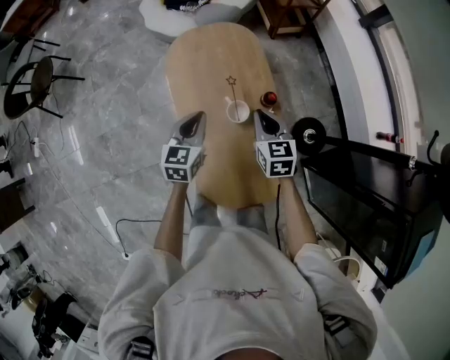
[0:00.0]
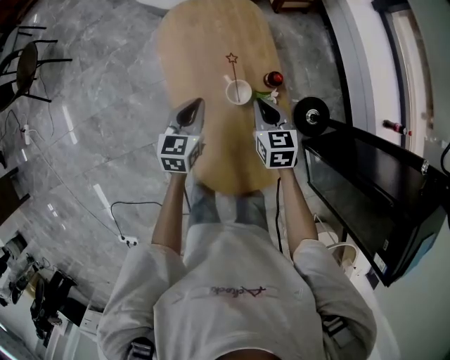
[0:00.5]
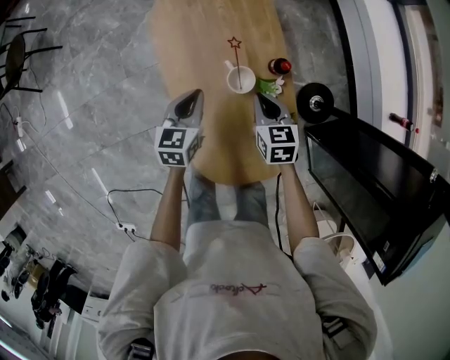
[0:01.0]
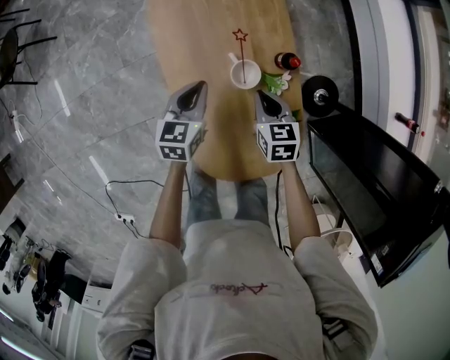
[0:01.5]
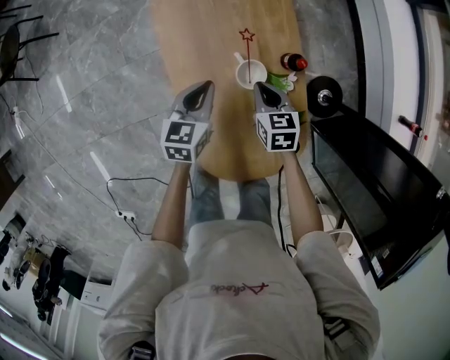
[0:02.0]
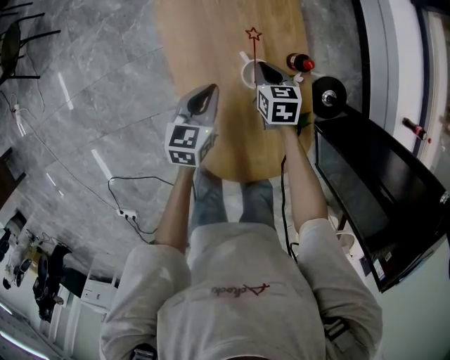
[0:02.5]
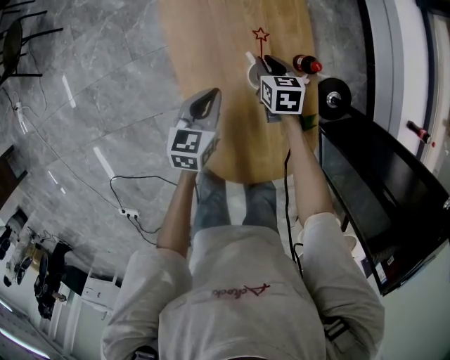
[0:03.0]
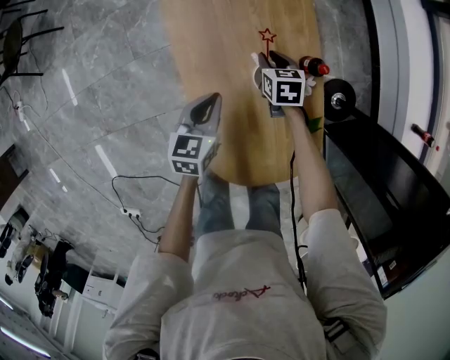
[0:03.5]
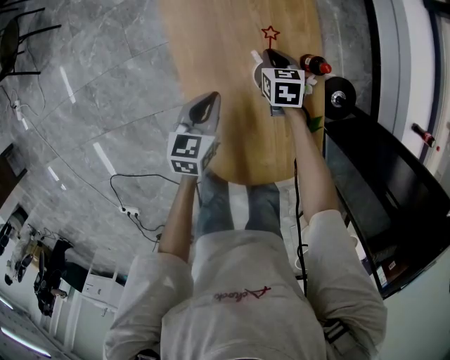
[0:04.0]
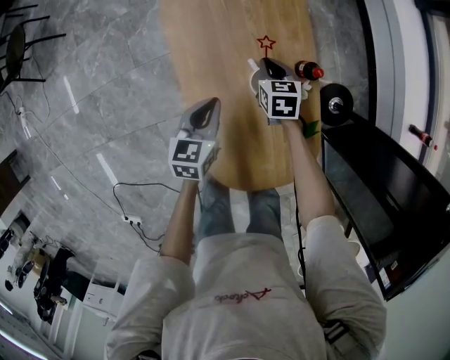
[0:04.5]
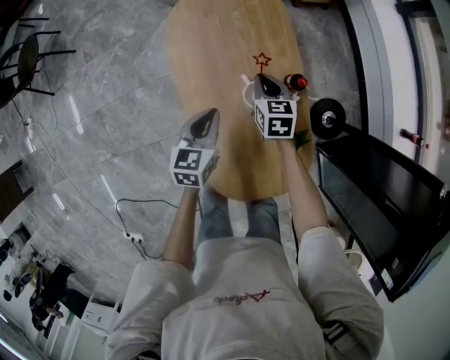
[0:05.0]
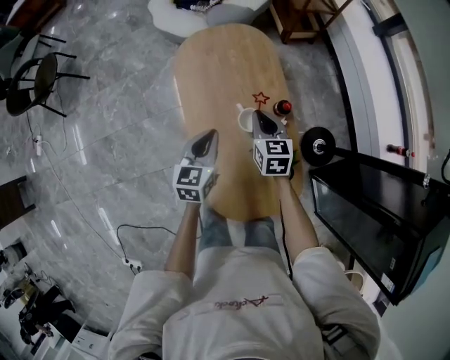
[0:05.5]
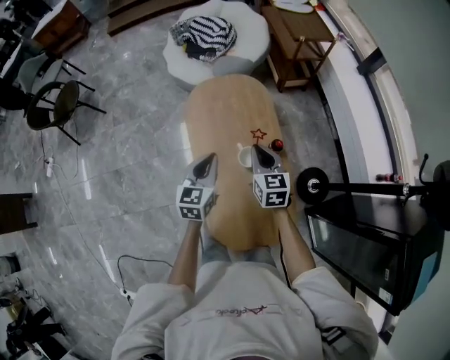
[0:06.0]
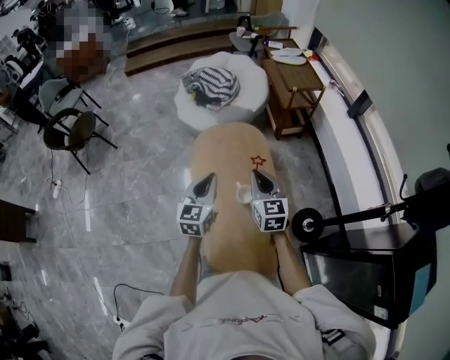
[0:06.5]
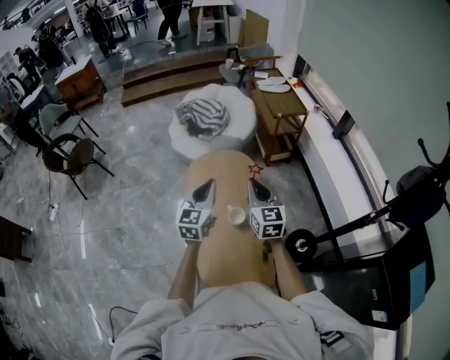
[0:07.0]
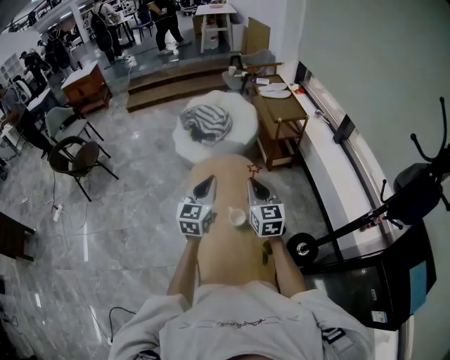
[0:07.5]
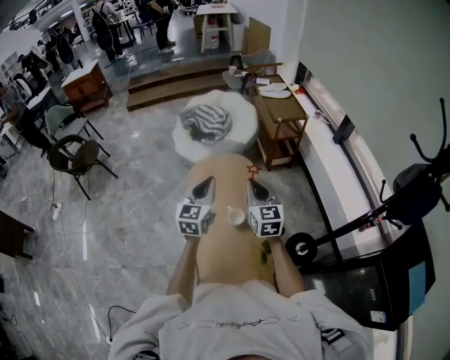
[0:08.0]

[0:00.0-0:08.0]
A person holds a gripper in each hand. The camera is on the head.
0:00.0 to 0:02.0: The grippers both shift downward by about 20 cm.
0:02.0 to 0:04.0: The left gripper ends up about 5 cm from where it was. The right gripper travels downward and forward by about 15 cm, and opens and closes again.
0:04.0 to 0:06.0: The grippers both shift upward by about 35 cm. The right gripper changes its angle by approximately 30 degrees. Meanwhile the left gripper rotates about 20 degrees.
0:06.0 to 0:08.0: Both grippers move upward, approximately 20 cm.

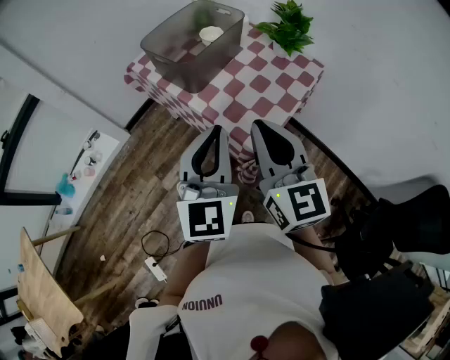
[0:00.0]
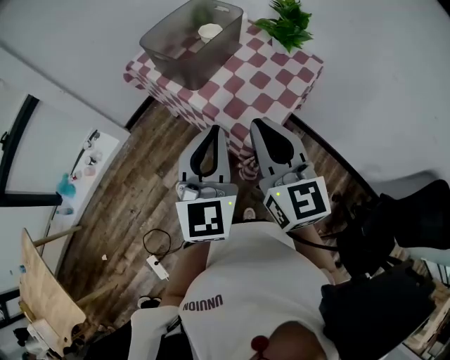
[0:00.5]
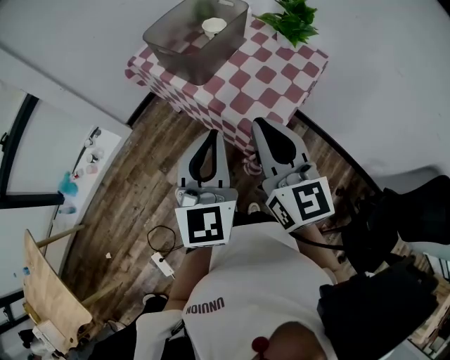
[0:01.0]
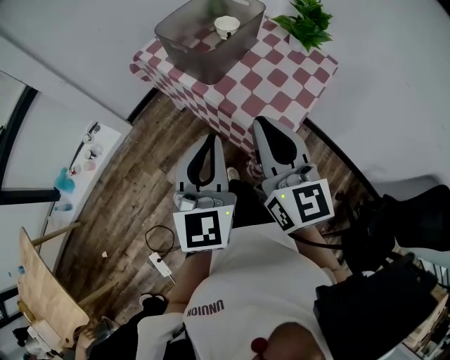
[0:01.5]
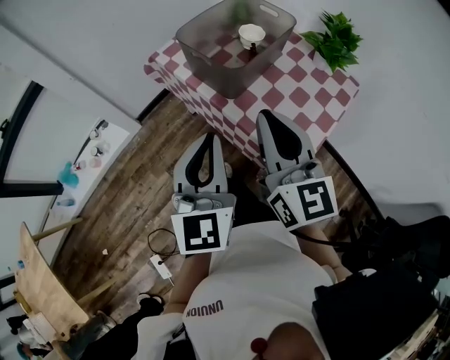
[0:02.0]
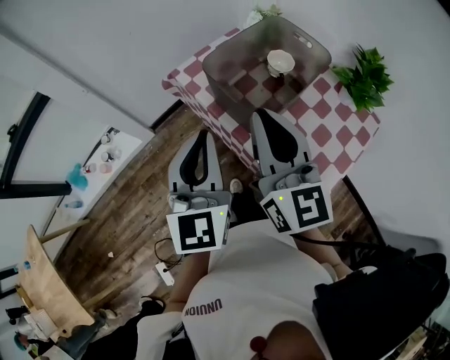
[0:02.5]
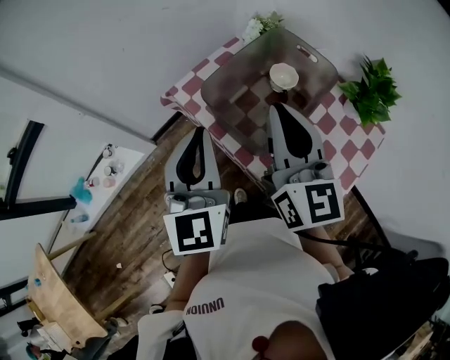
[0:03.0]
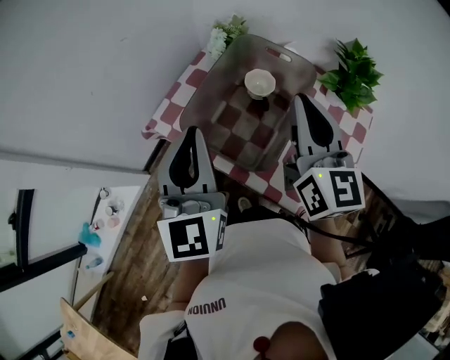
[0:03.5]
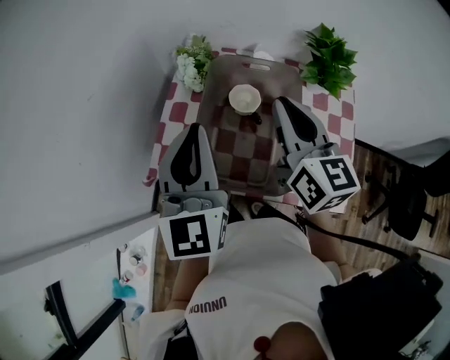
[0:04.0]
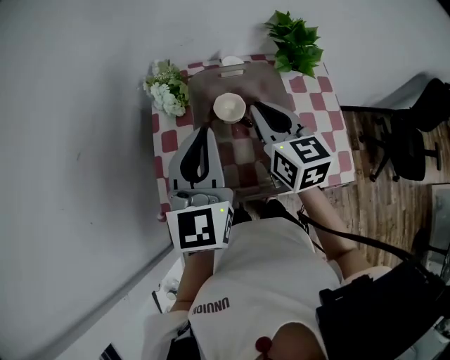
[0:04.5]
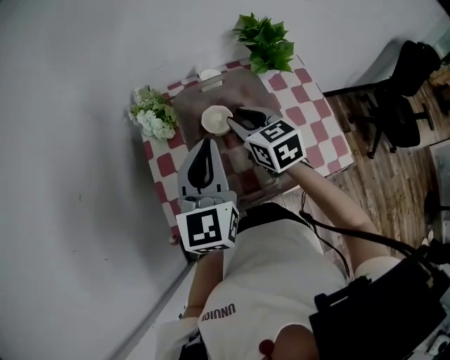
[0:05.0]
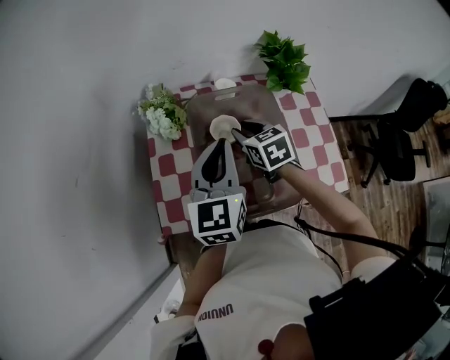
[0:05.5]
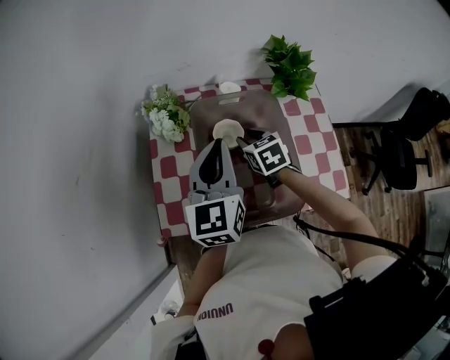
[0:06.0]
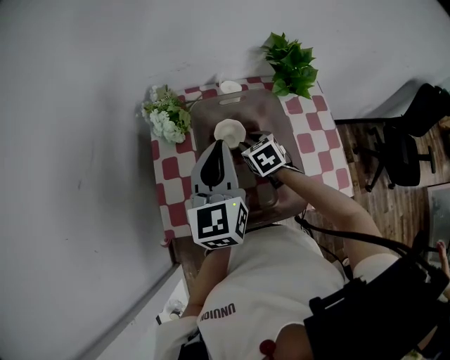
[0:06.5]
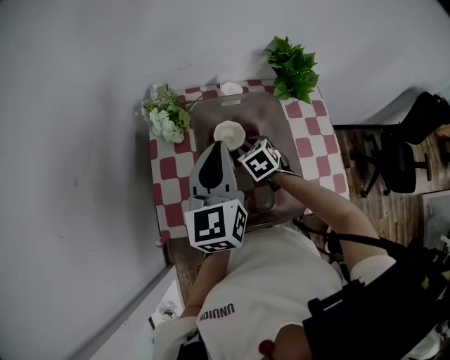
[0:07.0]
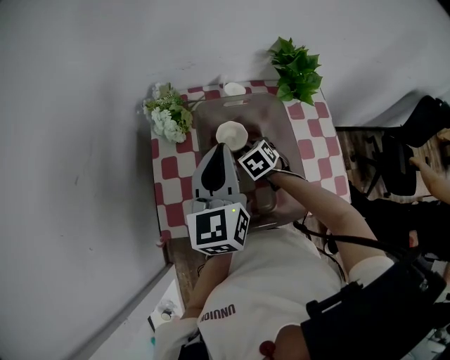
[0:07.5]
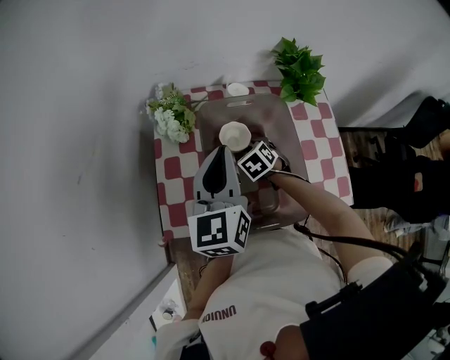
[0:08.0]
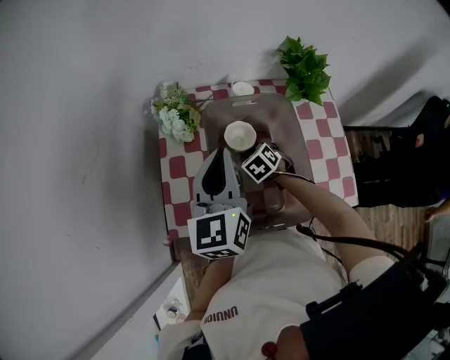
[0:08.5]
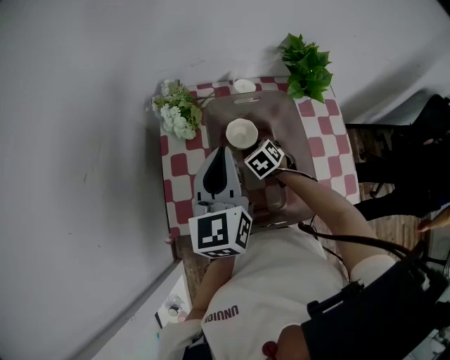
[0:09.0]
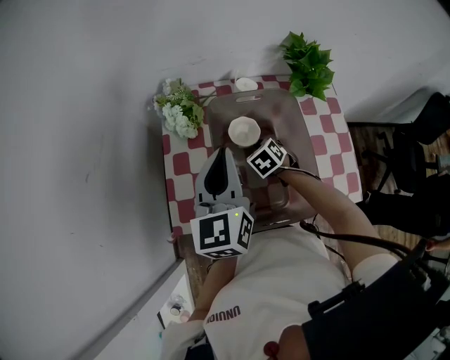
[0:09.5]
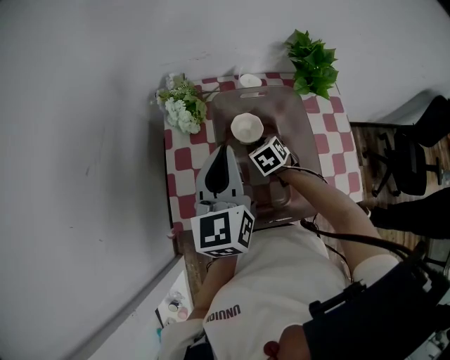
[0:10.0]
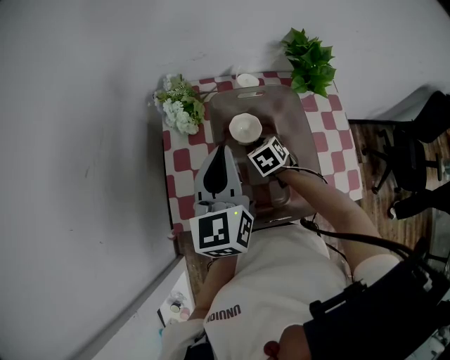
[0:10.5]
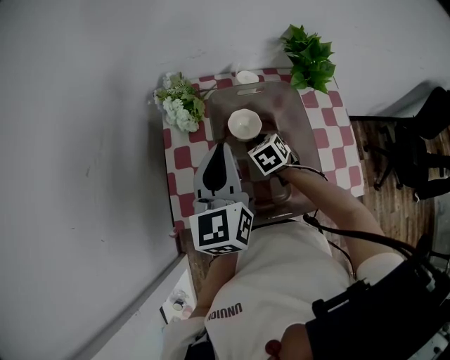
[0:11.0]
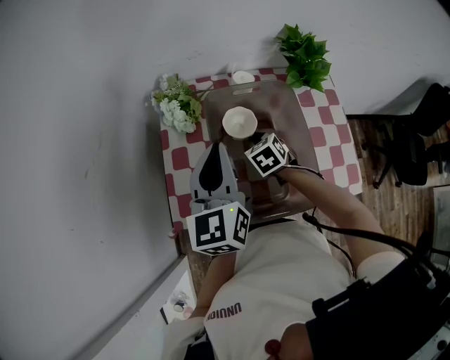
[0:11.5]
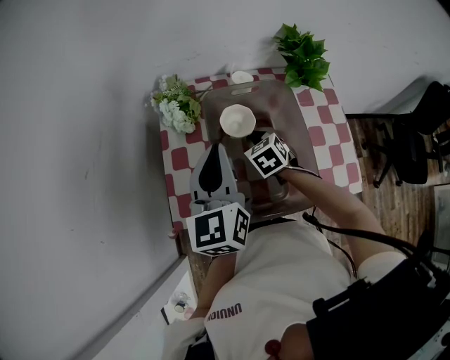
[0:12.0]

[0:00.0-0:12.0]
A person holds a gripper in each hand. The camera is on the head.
0:00.0 to 0:02.0: The right gripper is displaced forward and to the left by roughly 15 cm, while the left gripper shifts some 15 cm to the left and forward.
0:02.0 to 0:04.0: The right gripper shifts by roughly 35 cm, and swivels roughly 40 degrees. The left gripper changes place by some 40 cm, and turns by approximately 30 degrees.
0:04.0 to 0:06.0: The left gripper goes roughly 10 cm forward and downward, and swivels about 30 degrees; the right gripper is displaced downward and forward by about 25 cm, angles its fingers downward, by about 40 degrees, and opens up.
0:06.0 to 0:08.0: The right gripper heads downward, covering approximately 10 cm, and rotates about 20 degrees.
0:08.0 to 0:10.0: The grippers stay close to where they were, moving slightly.
0:10.0 to 0:12.0: The right gripper is displaced upward by approximately 5 cm.

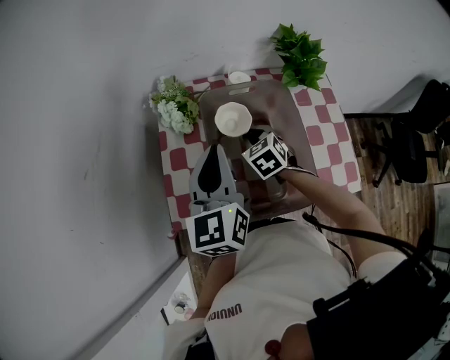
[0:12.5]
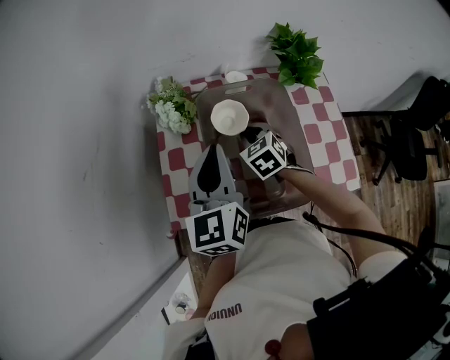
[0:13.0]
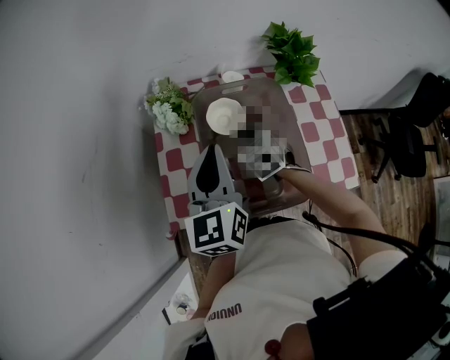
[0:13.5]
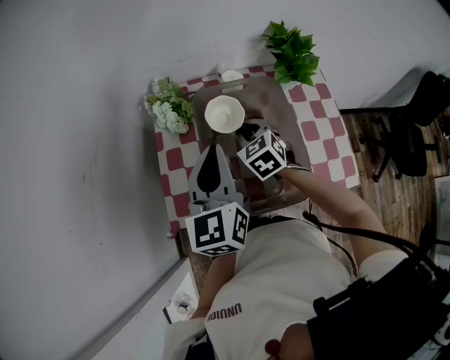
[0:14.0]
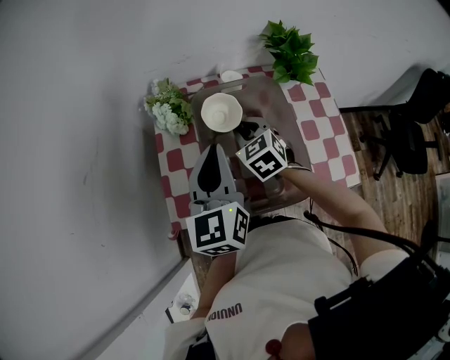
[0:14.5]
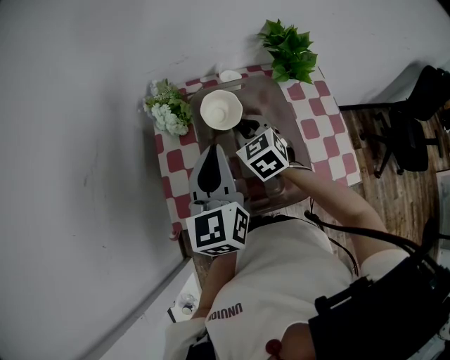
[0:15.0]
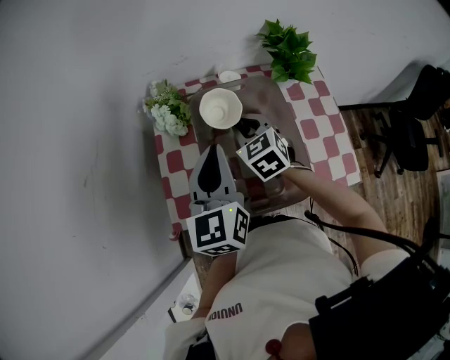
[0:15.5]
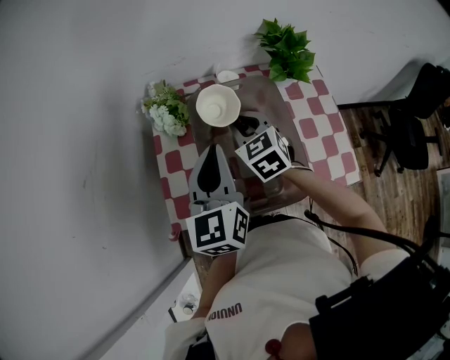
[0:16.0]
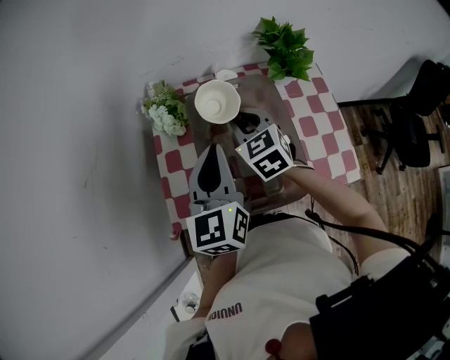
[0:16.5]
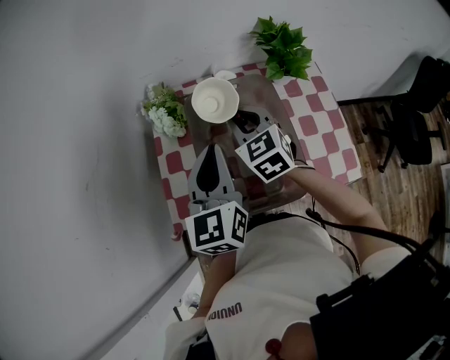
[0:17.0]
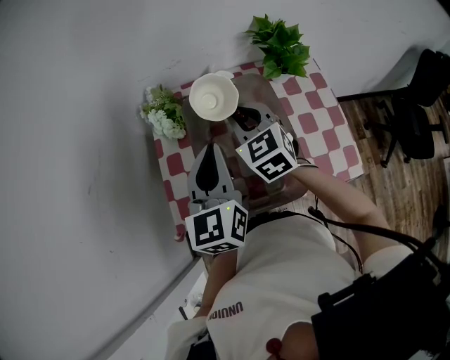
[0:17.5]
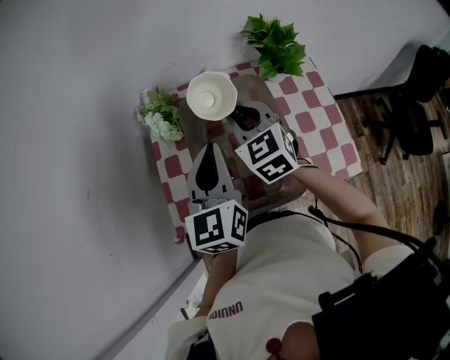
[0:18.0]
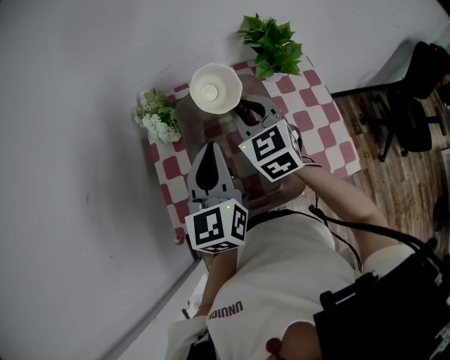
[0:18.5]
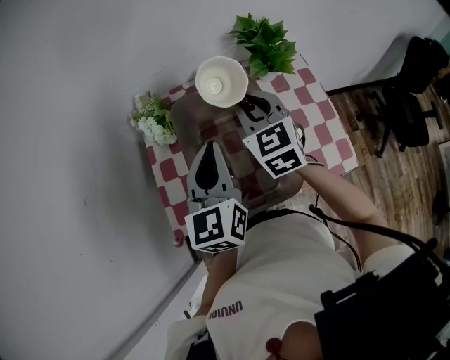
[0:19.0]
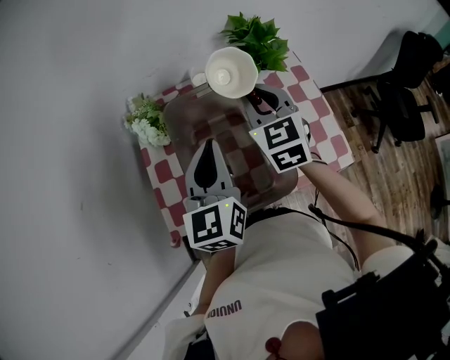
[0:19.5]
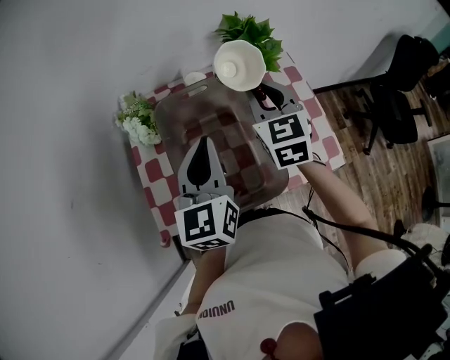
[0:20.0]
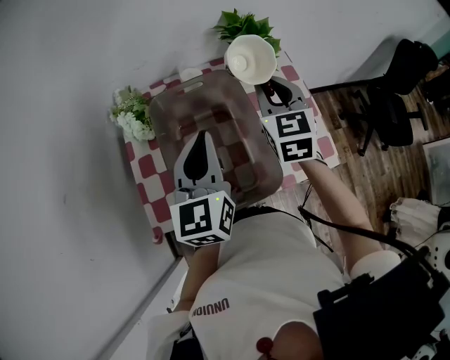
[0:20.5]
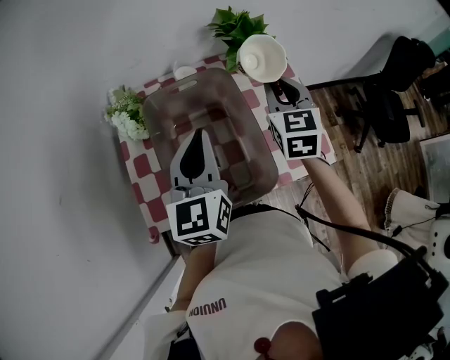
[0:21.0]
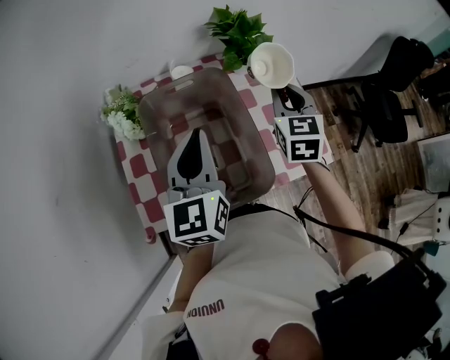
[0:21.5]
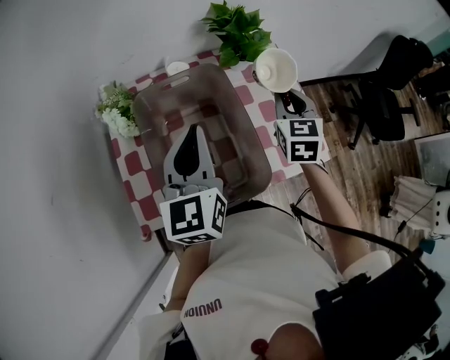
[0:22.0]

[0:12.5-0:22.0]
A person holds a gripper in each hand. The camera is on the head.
0:12.5 to 0:14.5: The right gripper travels upward by approximately 5 cm.
0:14.5 to 0:16.5: The right gripper is displaced upward by roughly 5 cm.
0:16.5 to 0:18.0: The grippers move only a little.
0:18.0 to 0:20.0: The right gripper goes some 10 cm to the right.
0:20.0 to 0:22.0: The right gripper moves to the right and downward, roughly 15 cm.
